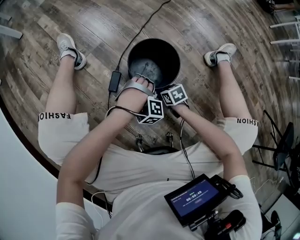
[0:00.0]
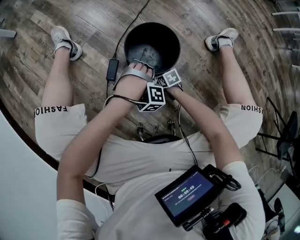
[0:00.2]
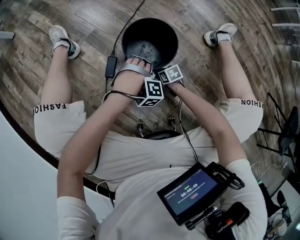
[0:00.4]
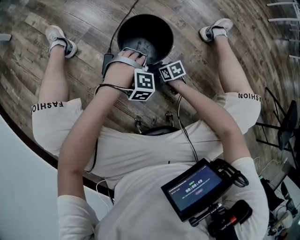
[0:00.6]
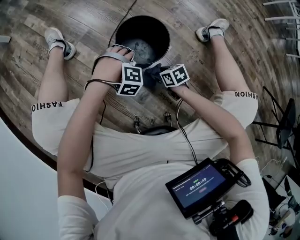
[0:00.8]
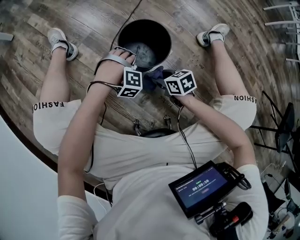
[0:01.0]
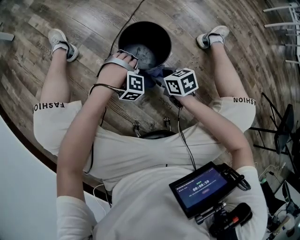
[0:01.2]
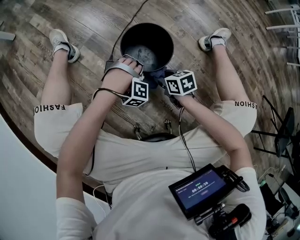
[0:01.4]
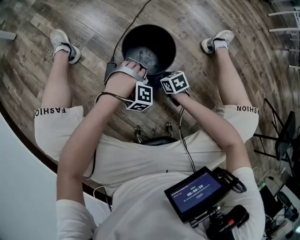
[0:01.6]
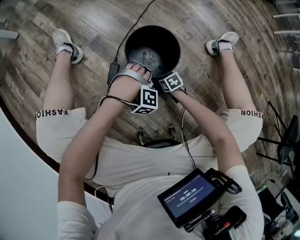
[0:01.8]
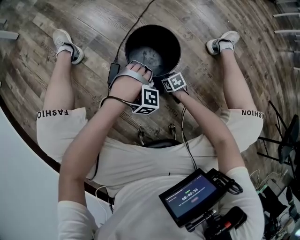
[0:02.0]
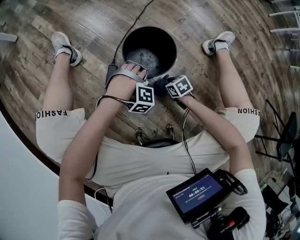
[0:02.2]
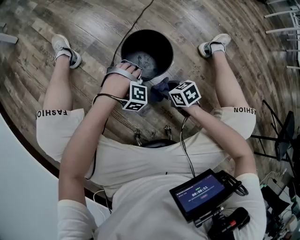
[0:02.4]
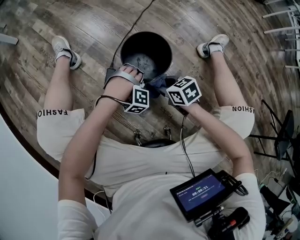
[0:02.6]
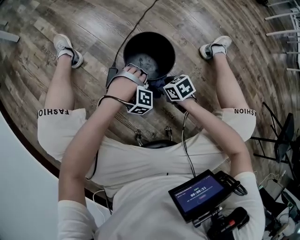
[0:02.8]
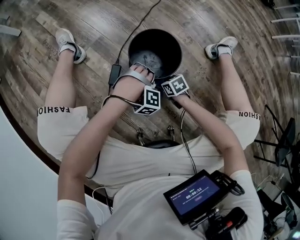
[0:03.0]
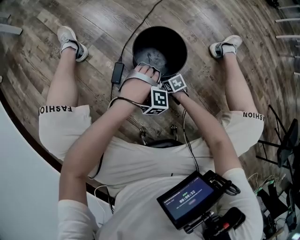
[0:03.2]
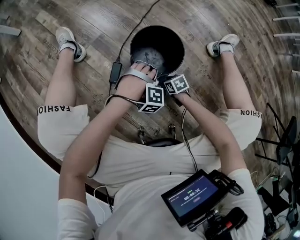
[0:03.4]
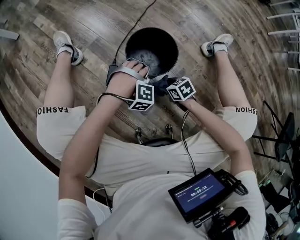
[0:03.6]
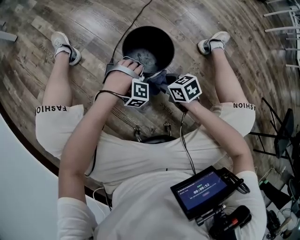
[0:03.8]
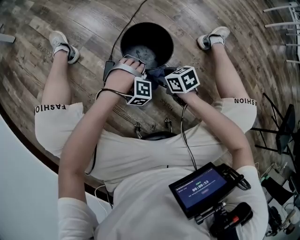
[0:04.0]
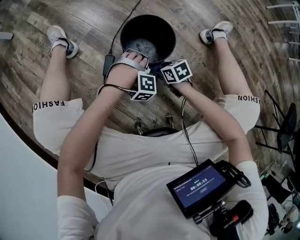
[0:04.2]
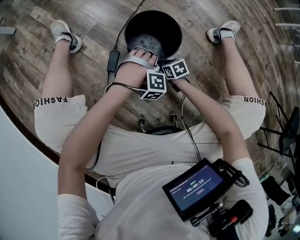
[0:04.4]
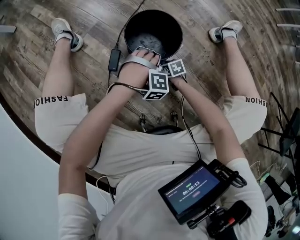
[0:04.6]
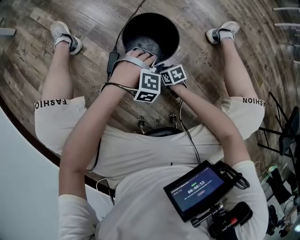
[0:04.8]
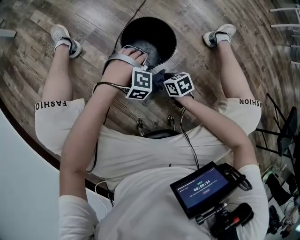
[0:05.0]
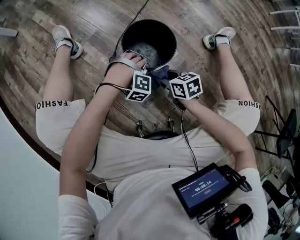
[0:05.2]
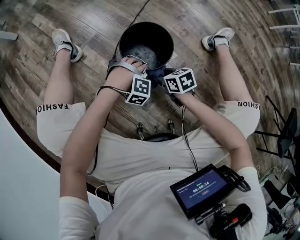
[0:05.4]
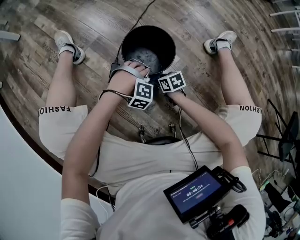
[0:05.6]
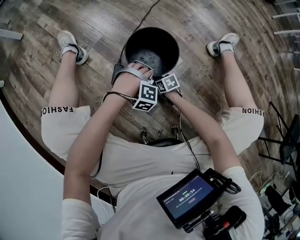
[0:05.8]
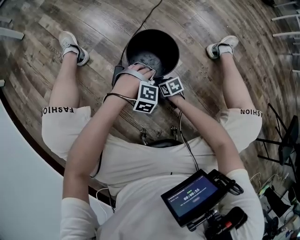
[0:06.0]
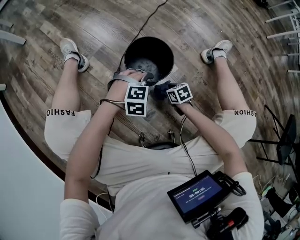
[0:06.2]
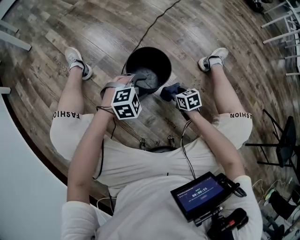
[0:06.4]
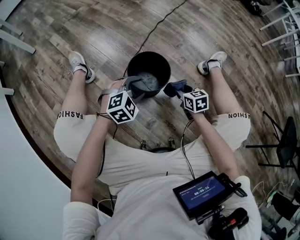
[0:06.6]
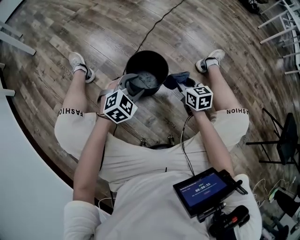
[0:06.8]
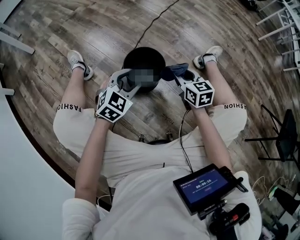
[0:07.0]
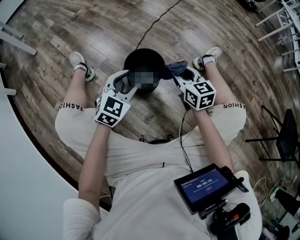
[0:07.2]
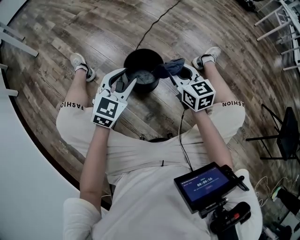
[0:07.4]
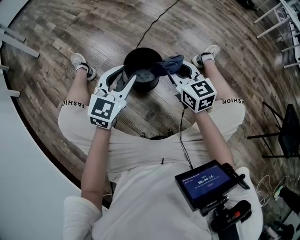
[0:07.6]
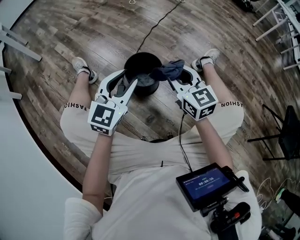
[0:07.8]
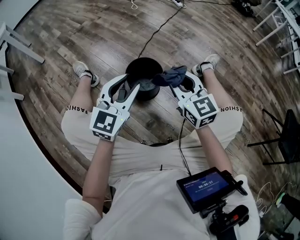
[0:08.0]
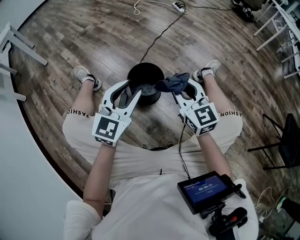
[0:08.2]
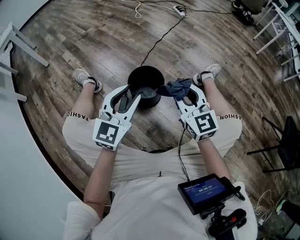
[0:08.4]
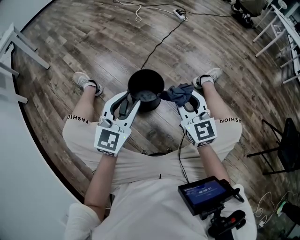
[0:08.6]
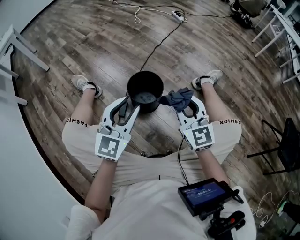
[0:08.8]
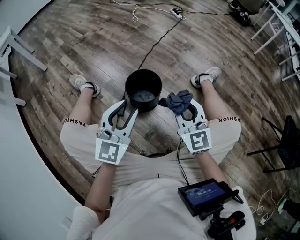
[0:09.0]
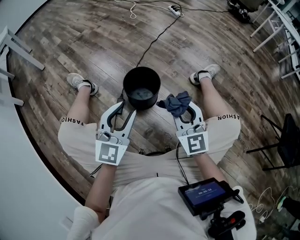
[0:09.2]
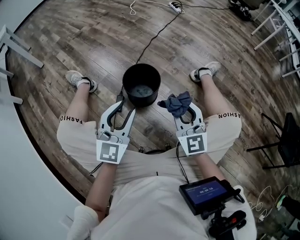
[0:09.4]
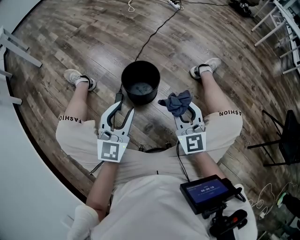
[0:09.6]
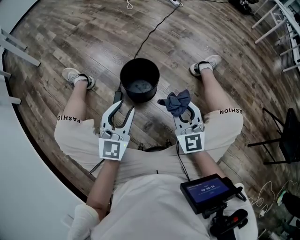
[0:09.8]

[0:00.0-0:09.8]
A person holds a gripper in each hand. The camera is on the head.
0:00.0 to 0:01.4: The right gripper heads upward, covering roughly 10 cm.
0:01.4 to 0:02.8: The right gripper swings up and down, roughly 20 cm each way, with 2 reversals.
0:02.8 to 0:04.2: The right gripper goes up and down, approximately 20 cm each way, reversing 2 times.
0:04.2 to 0:05.6: The right gripper swings up and down, some 20 cm each way, with 2 reversals.
0:05.6 to 0:07.0: The right gripper shifts some 30 cm upward, and swivels about 40 degrees.
0:07.0 to 0:08.4: The right gripper shifts roughly 20 cm upward, and changes its angle by some 30 degrees.
0:08.4 to 0:09.8: The right gripper shifts some 10 cm downward.

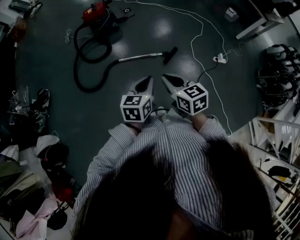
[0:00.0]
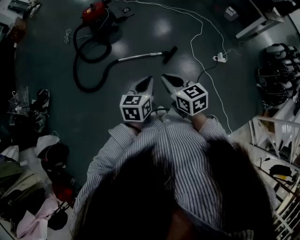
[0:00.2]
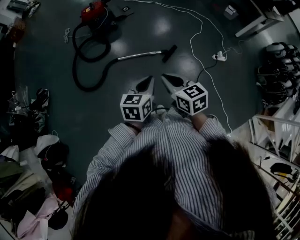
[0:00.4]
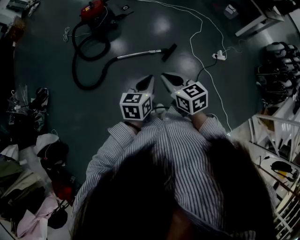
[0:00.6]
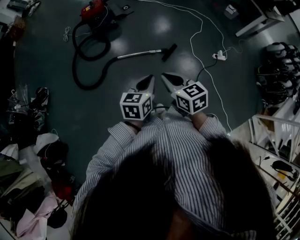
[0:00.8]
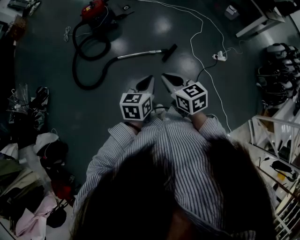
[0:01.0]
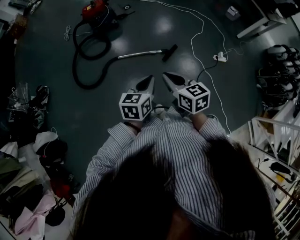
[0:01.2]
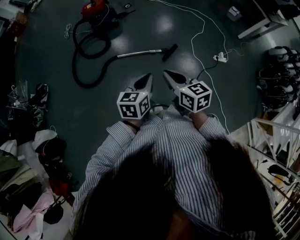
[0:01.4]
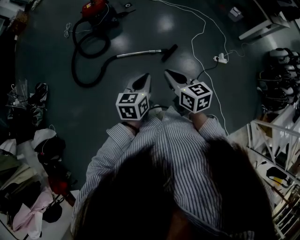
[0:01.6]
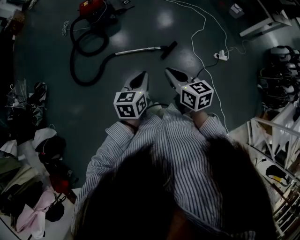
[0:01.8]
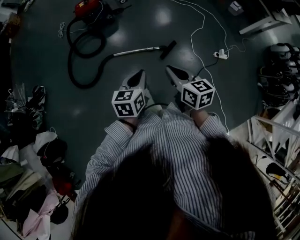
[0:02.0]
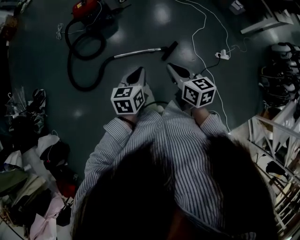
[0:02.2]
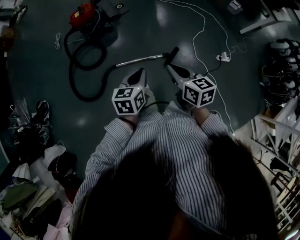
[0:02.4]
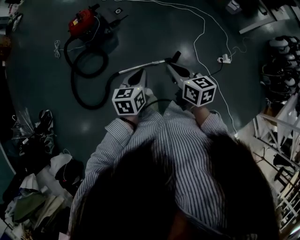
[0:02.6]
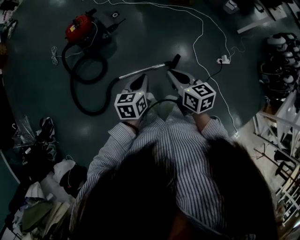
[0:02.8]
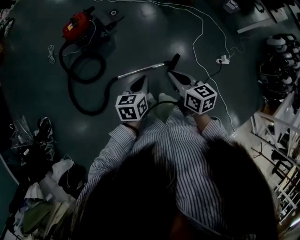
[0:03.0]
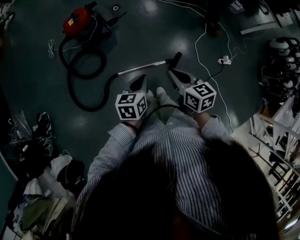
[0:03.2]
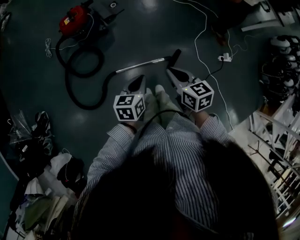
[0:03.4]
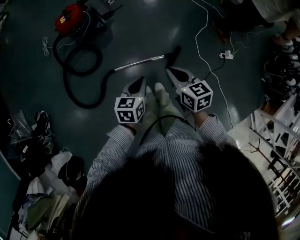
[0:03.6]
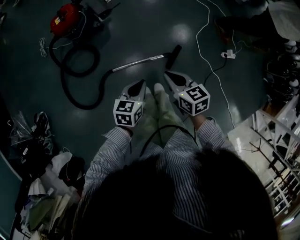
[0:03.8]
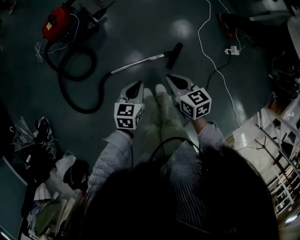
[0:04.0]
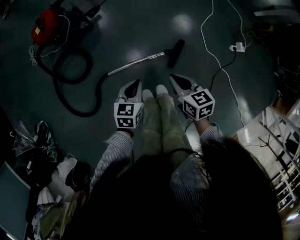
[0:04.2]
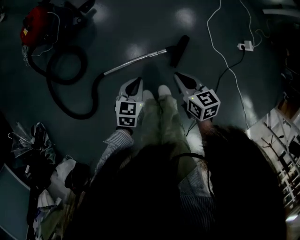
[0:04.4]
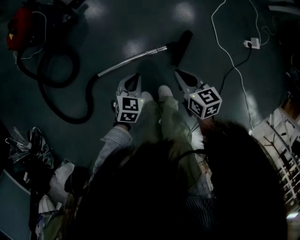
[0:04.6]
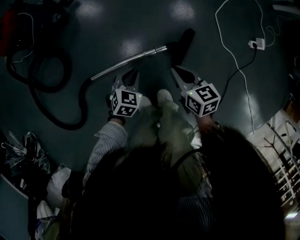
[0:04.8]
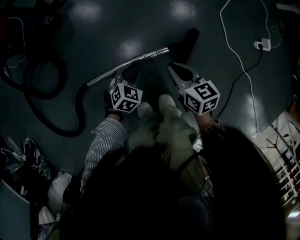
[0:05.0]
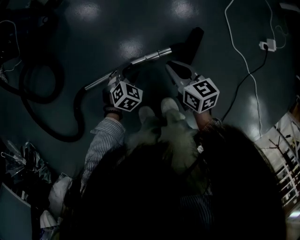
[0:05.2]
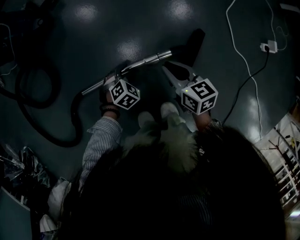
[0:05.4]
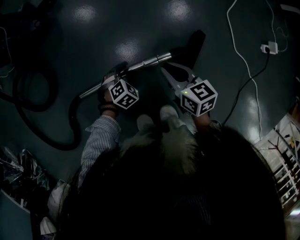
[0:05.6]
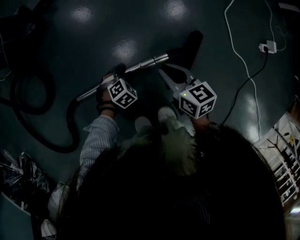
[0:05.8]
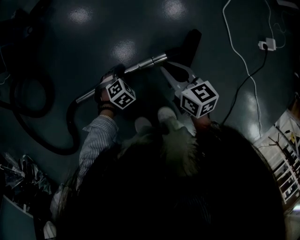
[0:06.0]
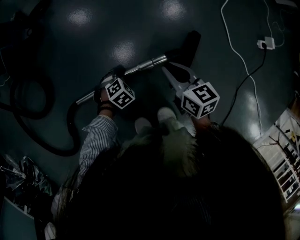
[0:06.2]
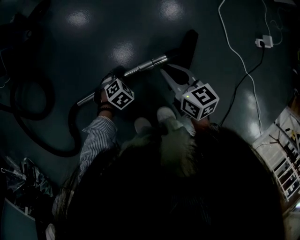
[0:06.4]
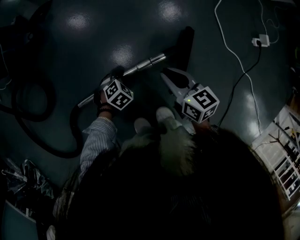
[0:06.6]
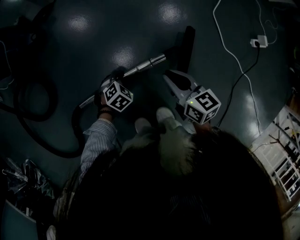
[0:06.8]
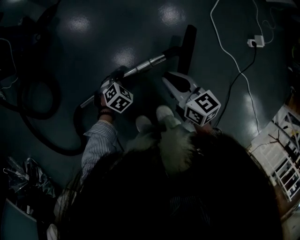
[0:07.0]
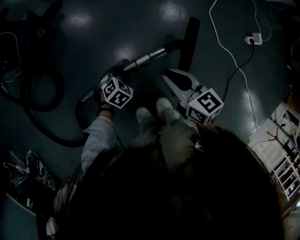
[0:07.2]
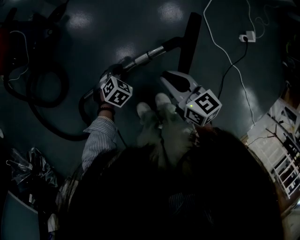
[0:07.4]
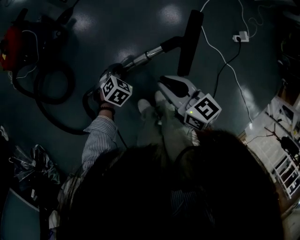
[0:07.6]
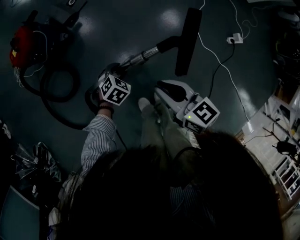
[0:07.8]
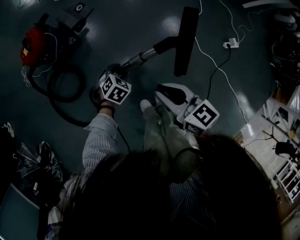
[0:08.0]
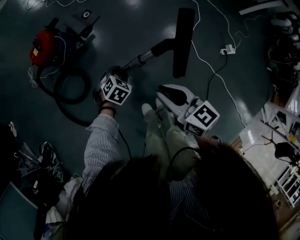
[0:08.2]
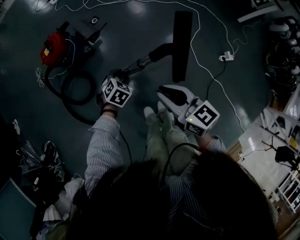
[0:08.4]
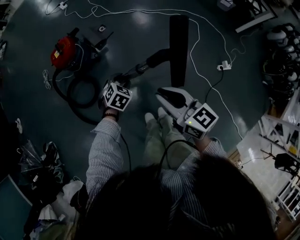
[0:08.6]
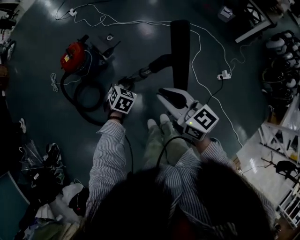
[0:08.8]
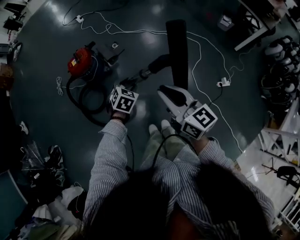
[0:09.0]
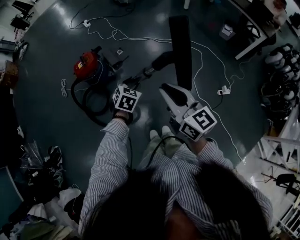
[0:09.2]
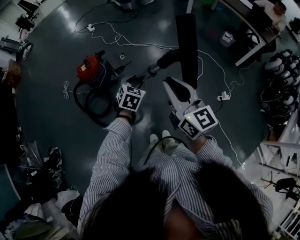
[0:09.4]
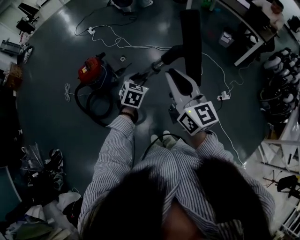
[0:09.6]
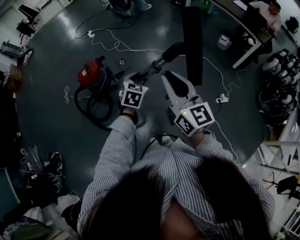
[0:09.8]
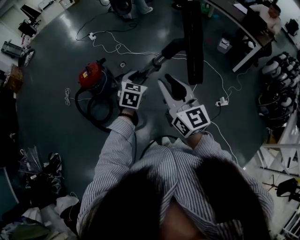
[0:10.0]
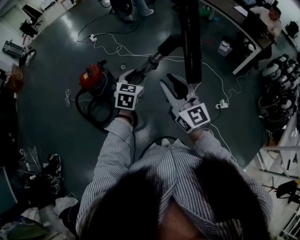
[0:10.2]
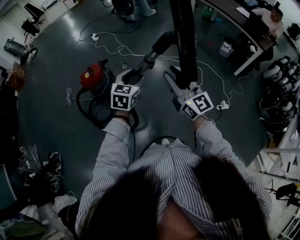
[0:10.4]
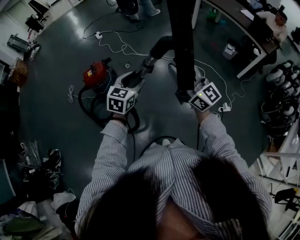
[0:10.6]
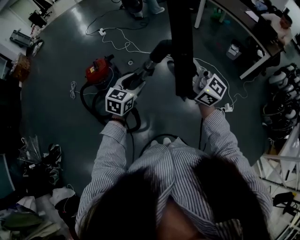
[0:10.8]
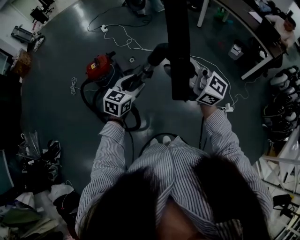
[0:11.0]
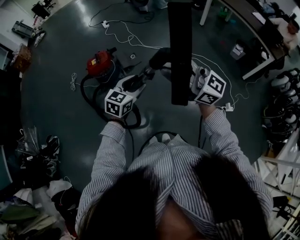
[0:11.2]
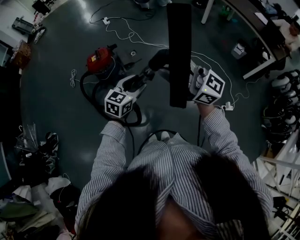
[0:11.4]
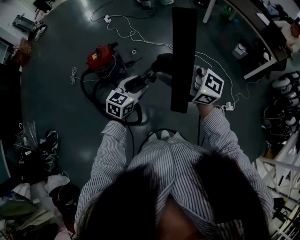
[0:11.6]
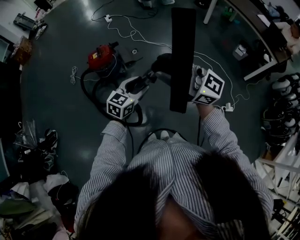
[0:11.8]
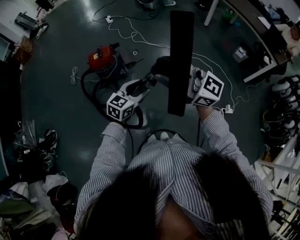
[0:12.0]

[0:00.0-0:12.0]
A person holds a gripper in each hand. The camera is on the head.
0:00.0 to 0:01.6: The right gripper is displaced to the right by some 5 cm.
0:01.6 to 0:03.0: Both grippers move forward, roughly 30 cm.
0:03.0 to 0:04.4: The two grippers go roughly 35 cm downward. The left gripper changes its angle by some 20 degrees.
0:04.4 to 0:06.0: Both grippers travel together downward, about 40 cm. The left gripper rotates some 50 degrees, and opens up.
0:06.0 to 0:07.6: The grippers both shift upward by roughly 30 cm.
0:07.6 to 0:09.0: Both grippers move upward, approximately 50 cm. The left gripper swivels some 30 degrees, while the right gripper changes its angle by roughly 20 degrees.
0:09.0 to 0:10.4: The left gripper heads upward, covering some 20 cm, and swivels some 30 degrees, while the right gripper heads upward, covering roughly 10 cm, and rotates approximately 30 degrees.
0:10.4 to 0:12.0: The right gripper heads to the left and upward, covering about 10 cm, and turns by about 40 degrees. Meanwhile the left gripper is displaced downward and backward by some 10 cm.

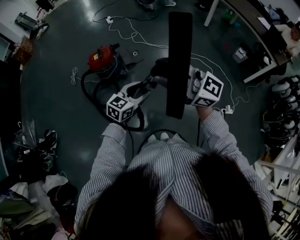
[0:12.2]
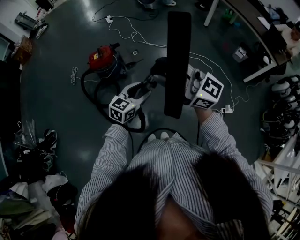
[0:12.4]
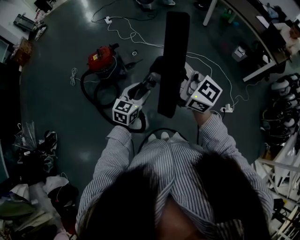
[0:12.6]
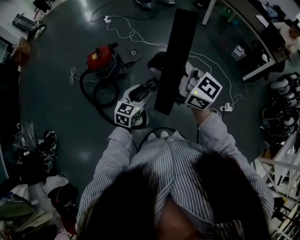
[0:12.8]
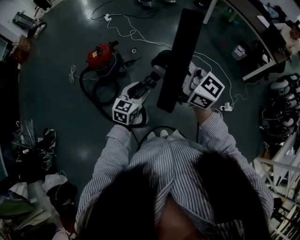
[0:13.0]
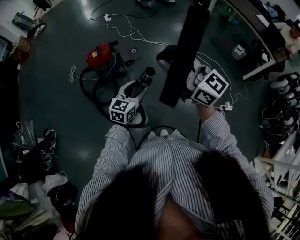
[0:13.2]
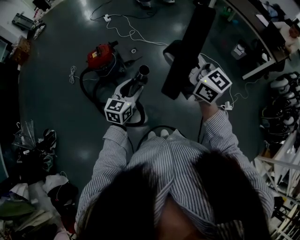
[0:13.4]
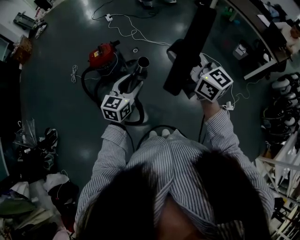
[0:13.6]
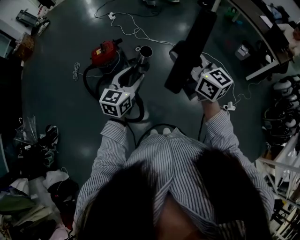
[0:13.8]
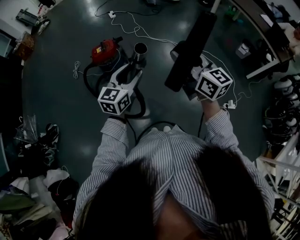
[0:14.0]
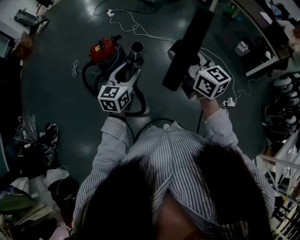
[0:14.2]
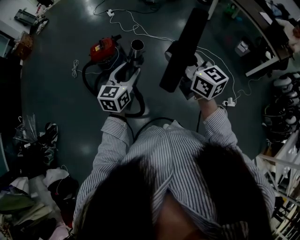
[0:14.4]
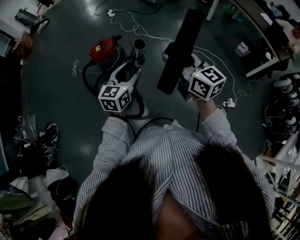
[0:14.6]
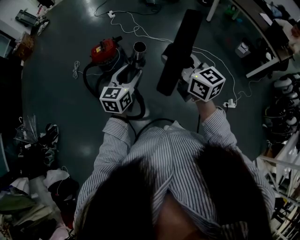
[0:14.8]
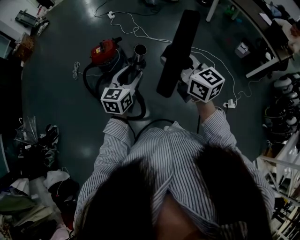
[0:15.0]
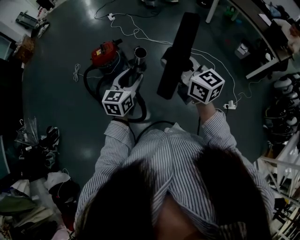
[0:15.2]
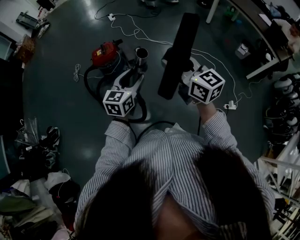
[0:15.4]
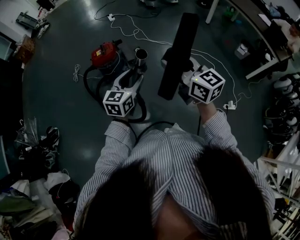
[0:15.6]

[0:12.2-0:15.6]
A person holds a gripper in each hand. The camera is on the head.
0:12.2 to 0:13.8: The left gripper is displaced upward by some 10 cm. The right gripper moves to the right and forward, approximately 10 cm, and turns by approximately 30 degrees.
0:13.8 to 0:15.6: The grippers make only small movements.
